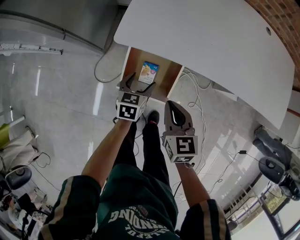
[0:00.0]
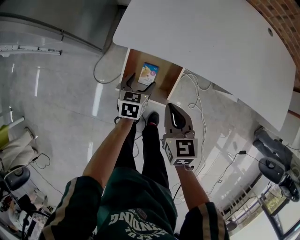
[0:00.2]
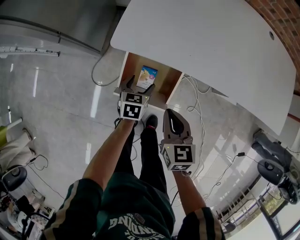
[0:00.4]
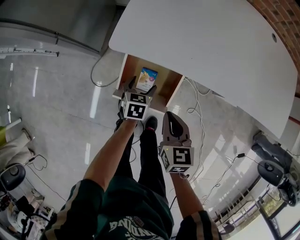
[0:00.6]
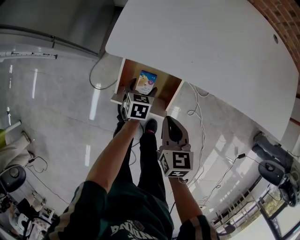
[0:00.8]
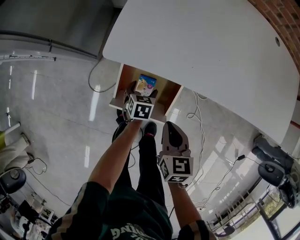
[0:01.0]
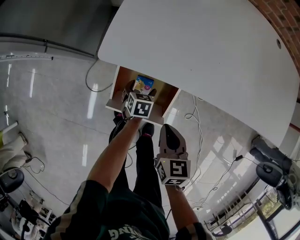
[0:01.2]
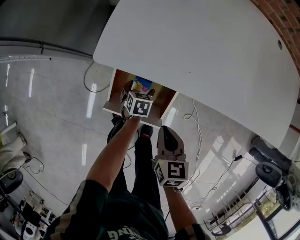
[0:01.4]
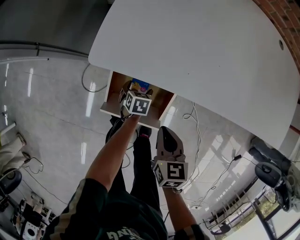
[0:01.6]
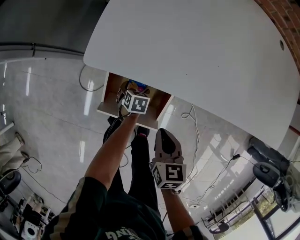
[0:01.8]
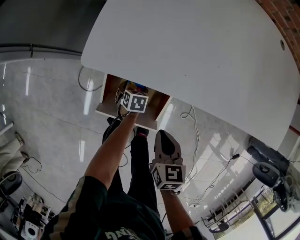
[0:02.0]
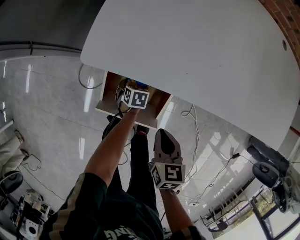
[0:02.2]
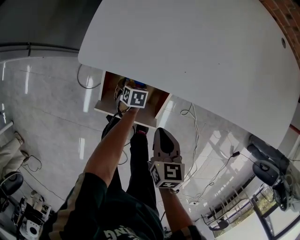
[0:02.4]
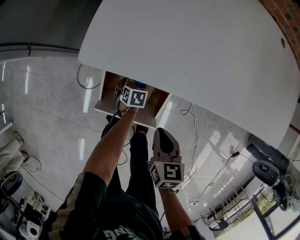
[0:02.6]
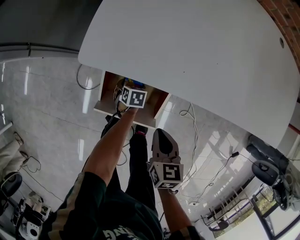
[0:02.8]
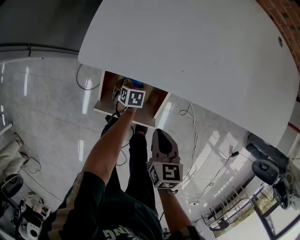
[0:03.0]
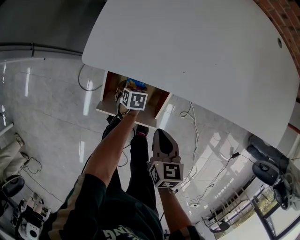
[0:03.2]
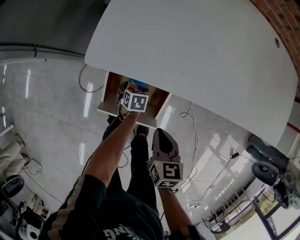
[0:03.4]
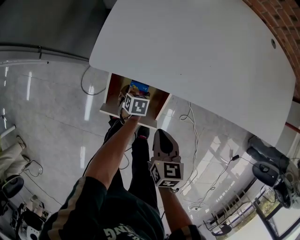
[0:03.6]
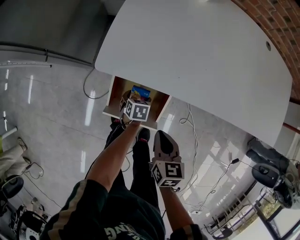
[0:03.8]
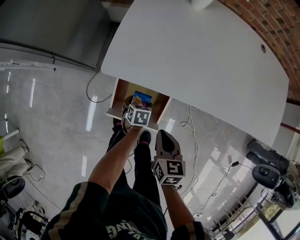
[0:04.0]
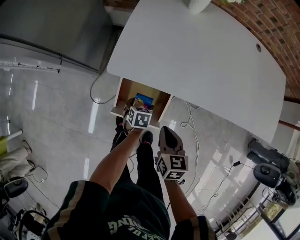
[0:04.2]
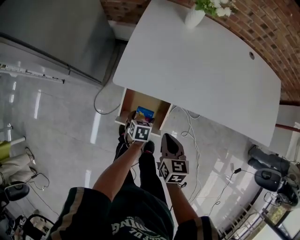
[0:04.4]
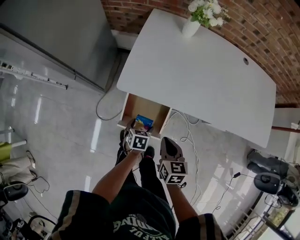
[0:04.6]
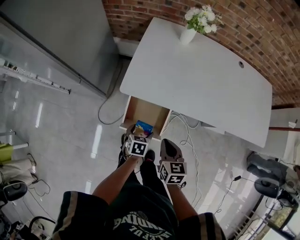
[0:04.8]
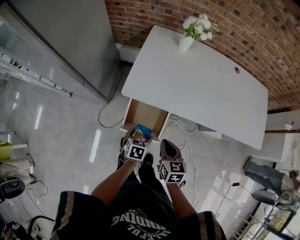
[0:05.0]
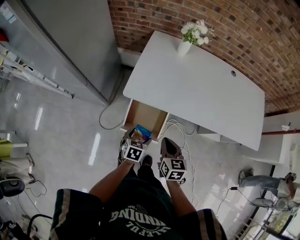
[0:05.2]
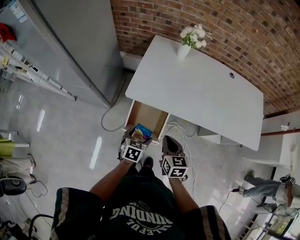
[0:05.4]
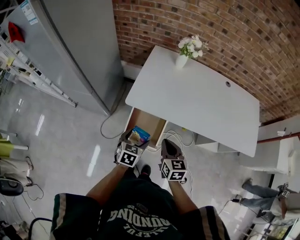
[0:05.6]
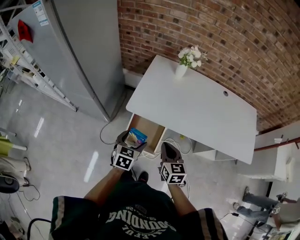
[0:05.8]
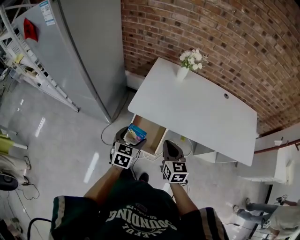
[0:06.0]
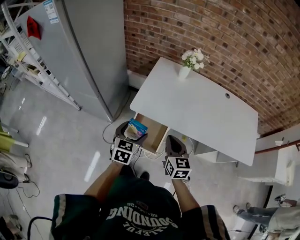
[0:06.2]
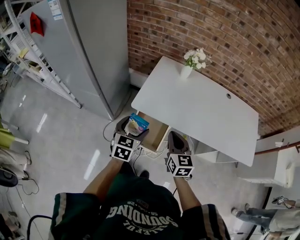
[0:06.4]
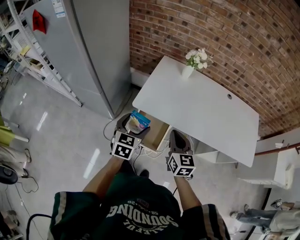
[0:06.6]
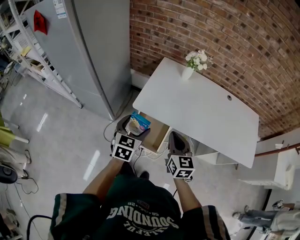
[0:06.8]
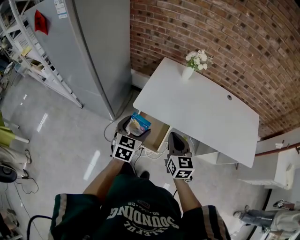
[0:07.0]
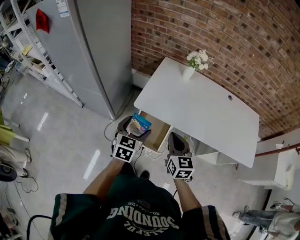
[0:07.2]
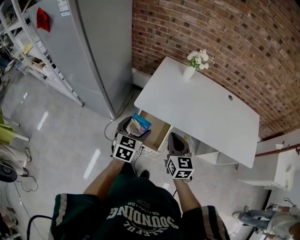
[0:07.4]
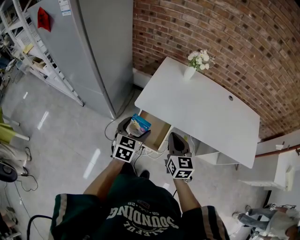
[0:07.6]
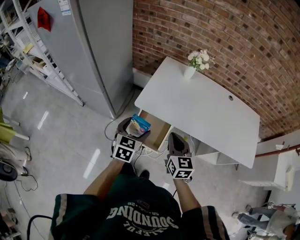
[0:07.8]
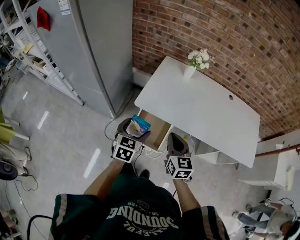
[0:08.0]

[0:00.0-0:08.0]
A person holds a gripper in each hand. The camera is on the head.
0:00.0 to 0:01.6: The left gripper shifts approximately 20 cm downward, and turns by approximately 20 degrees. The right gripper is displaced downward by about 10 cm.
0:01.6 to 0:03.2: There are only small adjustments of the grippers.
0:03.2 to 0:04.8: The right gripper travels upward by some 15 cm. Meanwhile the left gripper moves upward, about 25 cm.
0:04.8 to 0:06.4: The right gripper travels upward by roughly 15 cm, and rotates some 20 degrees; the left gripper shifts approximately 25 cm upward, and changes its angle by roughly 30 degrees.
0:06.4 to 0:08.0: The grippers stay close to where they were, moving slightly.

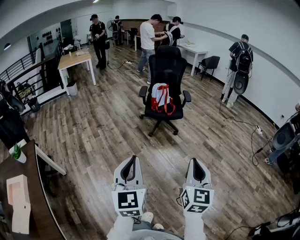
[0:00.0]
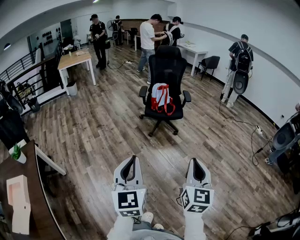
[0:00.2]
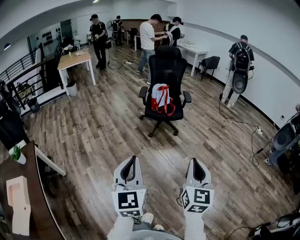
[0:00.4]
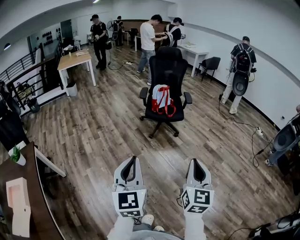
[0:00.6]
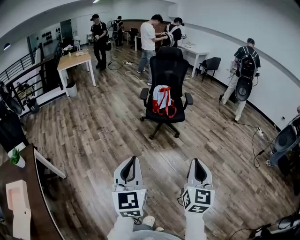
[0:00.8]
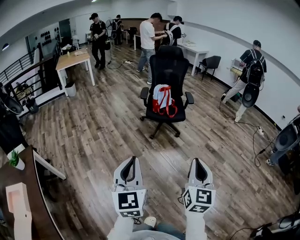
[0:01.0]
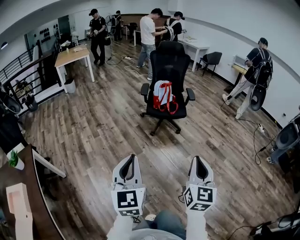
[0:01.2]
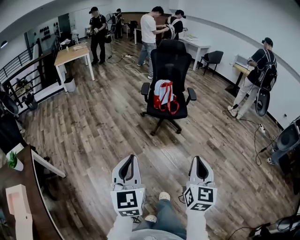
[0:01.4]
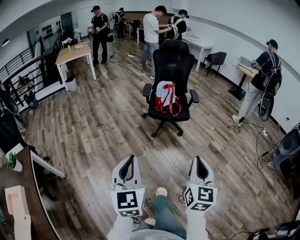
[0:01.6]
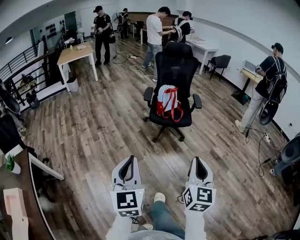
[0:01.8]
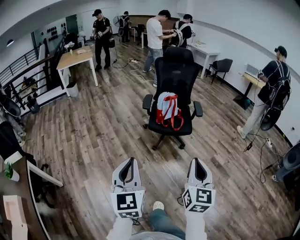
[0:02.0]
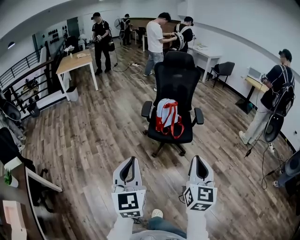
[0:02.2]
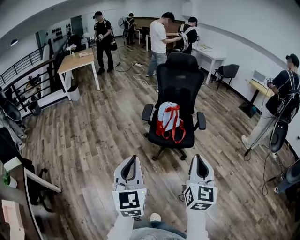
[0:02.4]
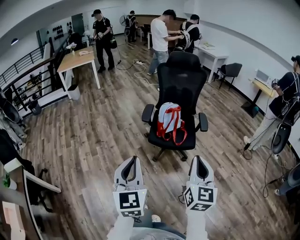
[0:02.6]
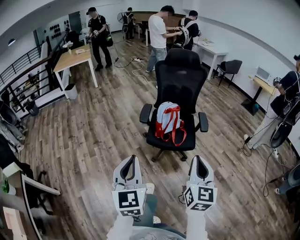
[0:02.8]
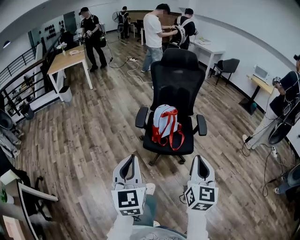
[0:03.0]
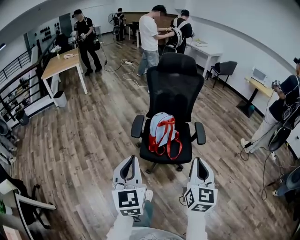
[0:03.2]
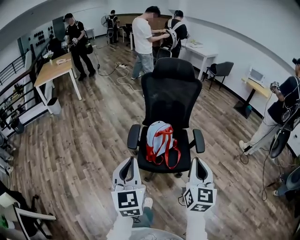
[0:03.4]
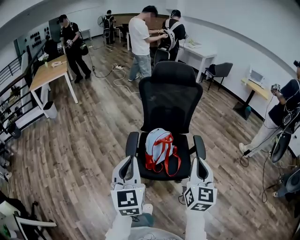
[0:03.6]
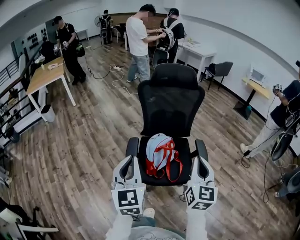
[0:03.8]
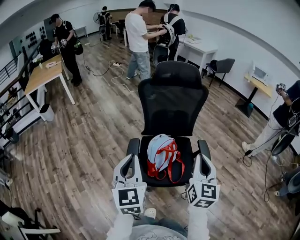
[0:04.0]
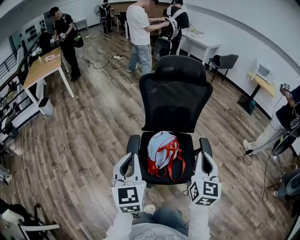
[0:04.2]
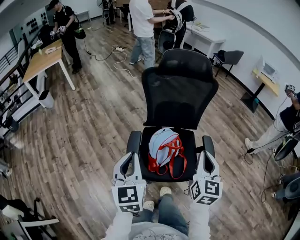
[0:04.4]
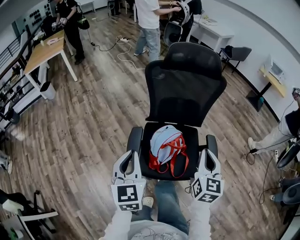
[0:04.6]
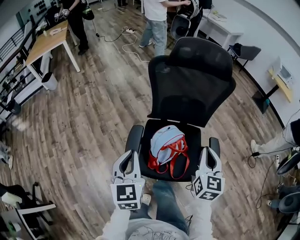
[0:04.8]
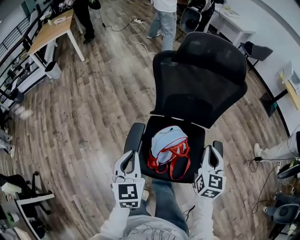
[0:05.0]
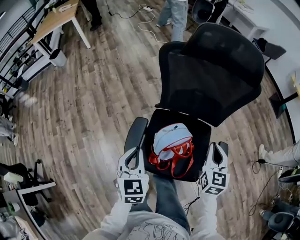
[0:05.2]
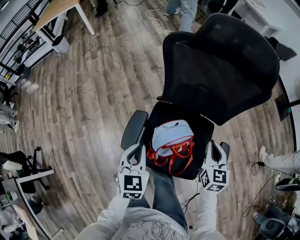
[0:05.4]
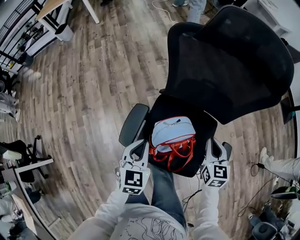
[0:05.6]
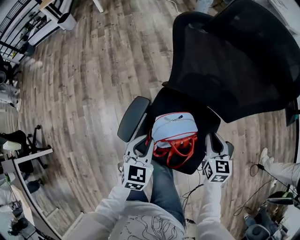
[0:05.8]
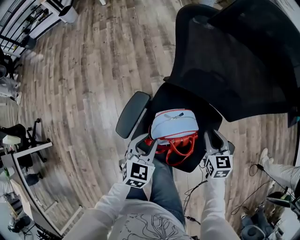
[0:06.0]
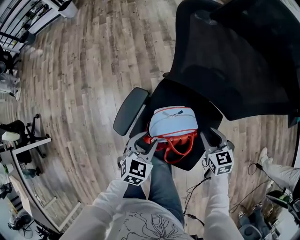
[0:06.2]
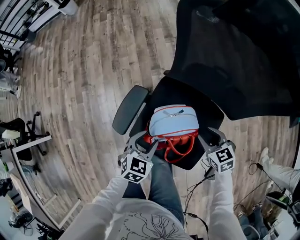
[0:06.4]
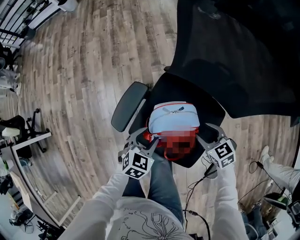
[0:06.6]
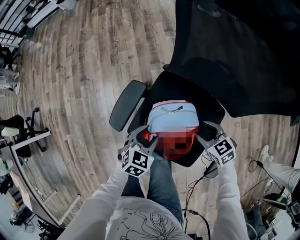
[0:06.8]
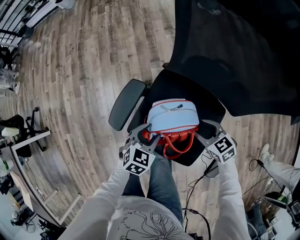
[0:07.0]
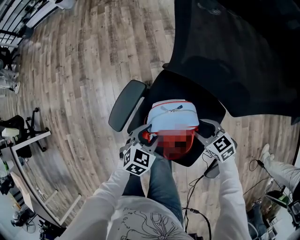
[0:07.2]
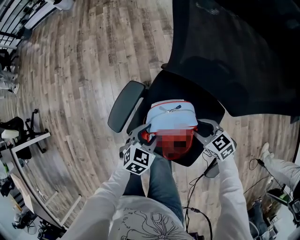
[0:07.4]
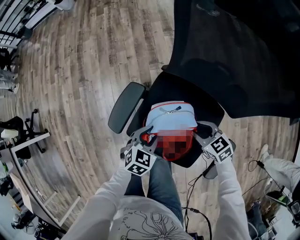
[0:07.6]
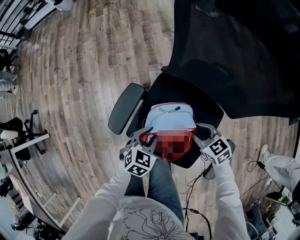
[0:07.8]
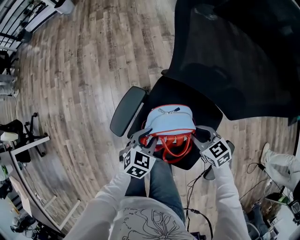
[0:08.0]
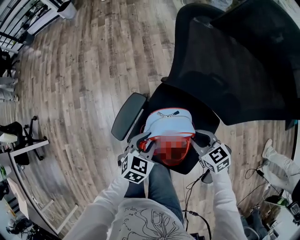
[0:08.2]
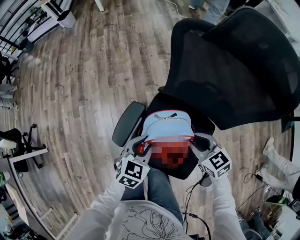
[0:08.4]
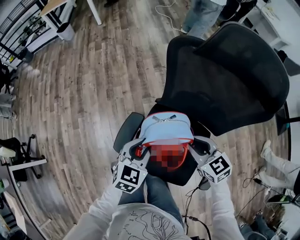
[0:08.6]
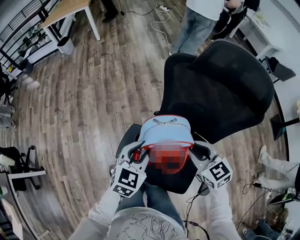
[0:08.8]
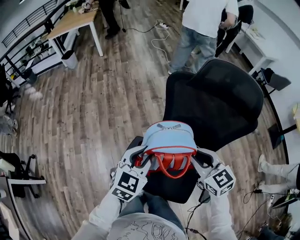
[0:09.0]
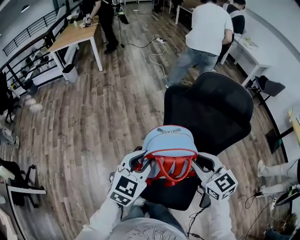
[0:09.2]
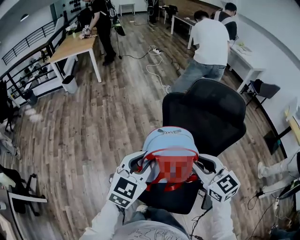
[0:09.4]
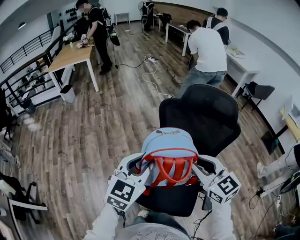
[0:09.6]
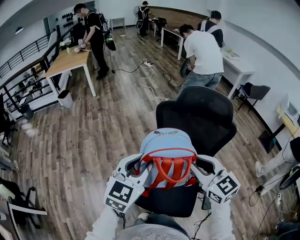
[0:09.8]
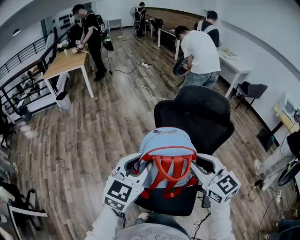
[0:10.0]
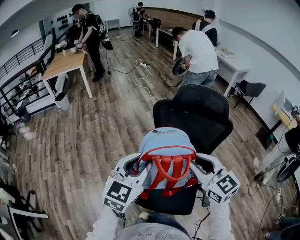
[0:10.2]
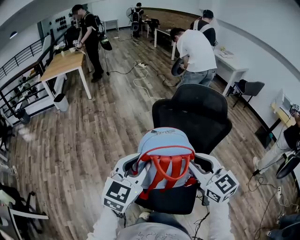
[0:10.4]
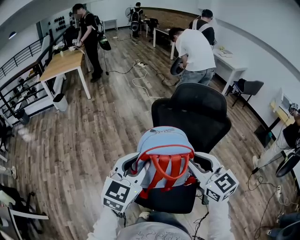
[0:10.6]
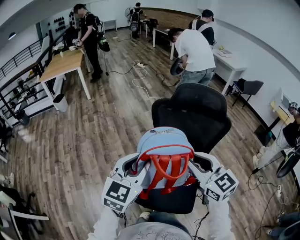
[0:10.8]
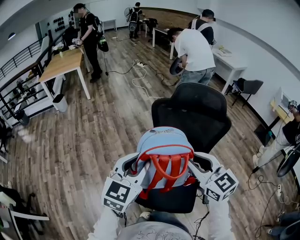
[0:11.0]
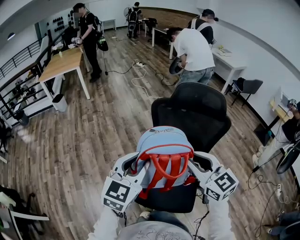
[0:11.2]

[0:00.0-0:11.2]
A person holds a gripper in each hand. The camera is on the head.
0:00.0 to 0:01.6: Both grippers travel together forward, approximately 15 cm.
0:01.6 to 0:03.2: Both grippers are carried forward, roughly 50 cm.
0:03.2 to 0:04.8: Both grippers move forward, approximately 40 cm.
0:04.8 to 0:06.4: Both grippers travel together downward, some 30 cm. The left gripper tilts its fingers about 30 degrees downward, and opens up. The right gripper changes its angle by some 70 degrees, and opens up.
0:06.4 to 0:08.0: The right gripper ends up some 5 cm from where it was.
0:08.0 to 0:09.6: Both grippers travel together upward, approximately 40 cm. The left gripper tips its fingers upward by about 40 degrees. Meanwhile the right gripper changes its angle by some 40 degrees.
0:09.6 to 0:11.2: The grippers move only a little.

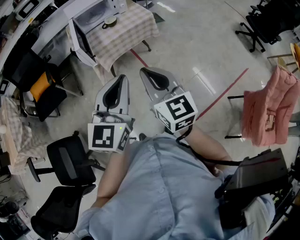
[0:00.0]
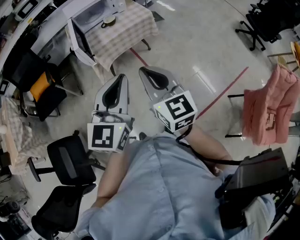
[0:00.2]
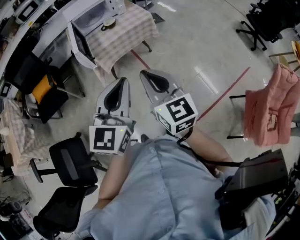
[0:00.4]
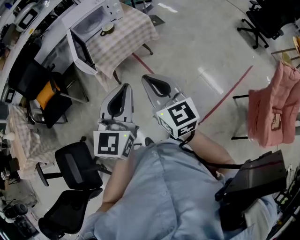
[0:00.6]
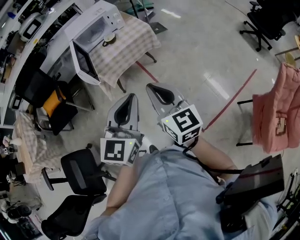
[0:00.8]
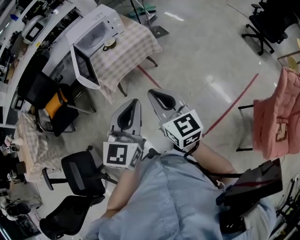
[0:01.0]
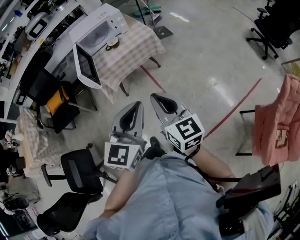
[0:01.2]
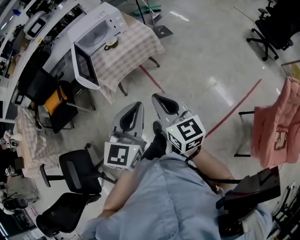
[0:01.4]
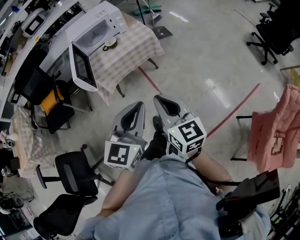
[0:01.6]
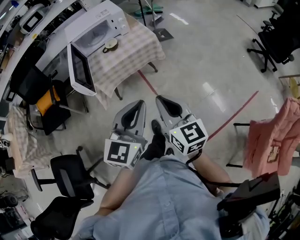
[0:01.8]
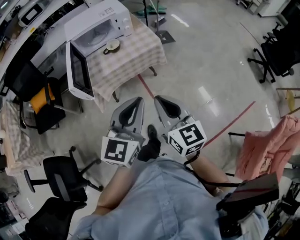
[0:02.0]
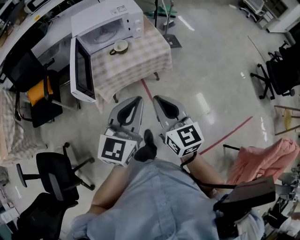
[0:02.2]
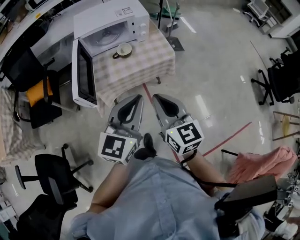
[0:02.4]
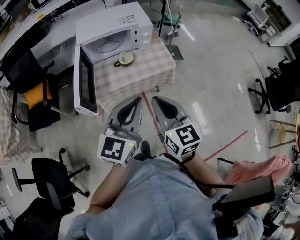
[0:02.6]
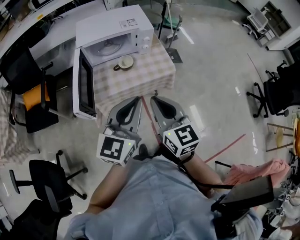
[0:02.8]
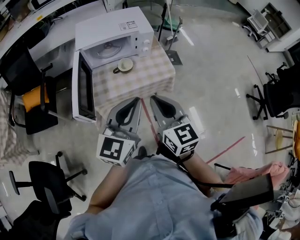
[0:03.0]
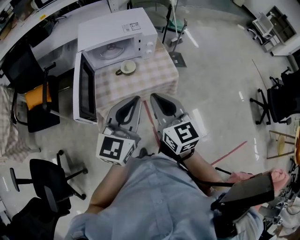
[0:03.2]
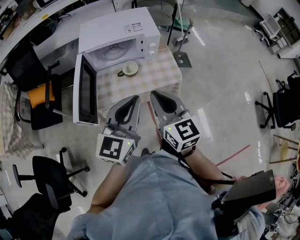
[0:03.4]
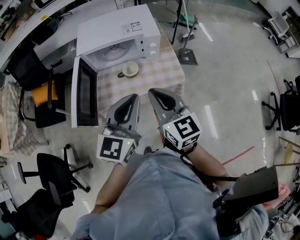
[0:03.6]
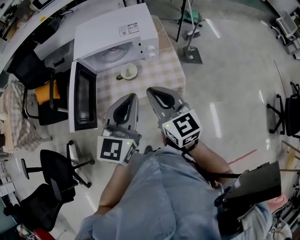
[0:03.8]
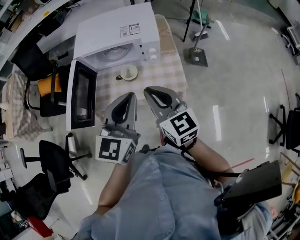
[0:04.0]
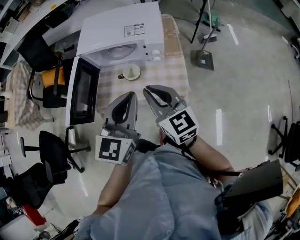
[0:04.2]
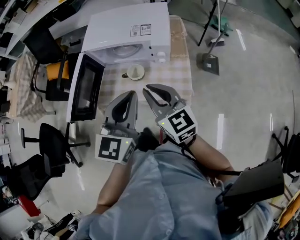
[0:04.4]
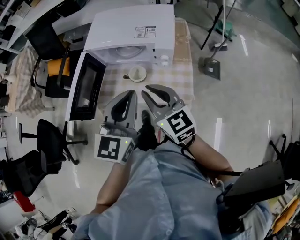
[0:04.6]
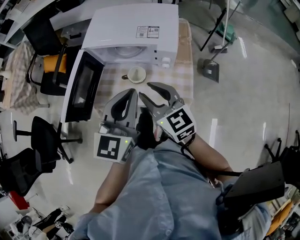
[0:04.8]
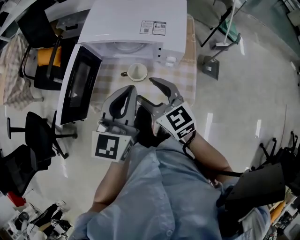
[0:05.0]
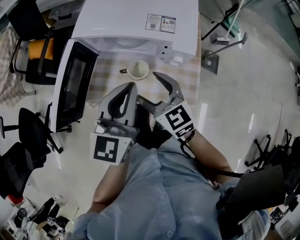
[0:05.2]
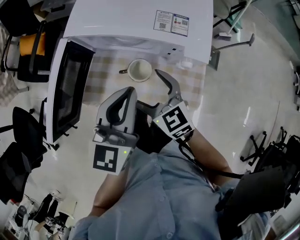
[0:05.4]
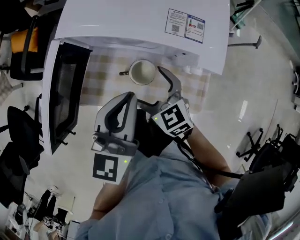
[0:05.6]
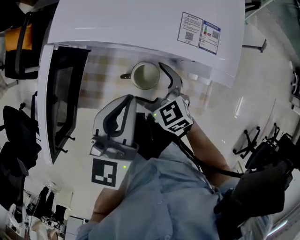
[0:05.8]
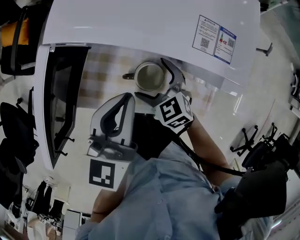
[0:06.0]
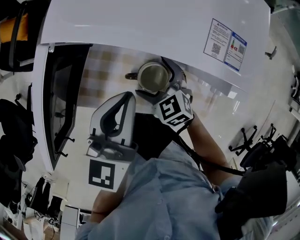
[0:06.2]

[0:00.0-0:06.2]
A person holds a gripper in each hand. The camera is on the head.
0:00.0 to 0:01.6: Both grippers move to the right and forward, approximately 15 cm.
0:01.6 to 0:03.2: The grippers both shift forward by approximately 35 cm.
0:03.2 to 0:04.6: The right gripper changes place by roughly 20 cm, and rotates approximately 30 degrees, while the left gripper ends up approximately 20 cm from where it was, and swivels roughly 30 degrees.
0:04.6 to 0:06.2: The right gripper travels downward and forward by about 35 cm, tips its fingers downward by approximately 40 degrees, and opens its fingers. Meanwhile the left gripper travels forward, downward and to the left by about 25 cm, and turns by about 20 degrees.
